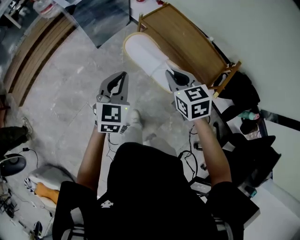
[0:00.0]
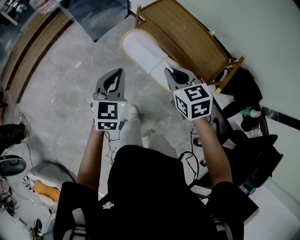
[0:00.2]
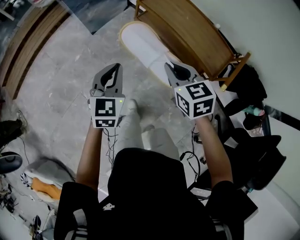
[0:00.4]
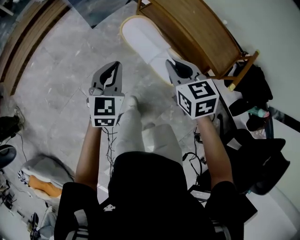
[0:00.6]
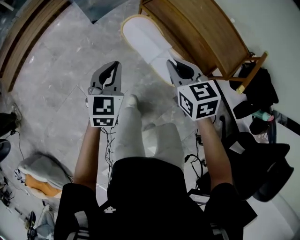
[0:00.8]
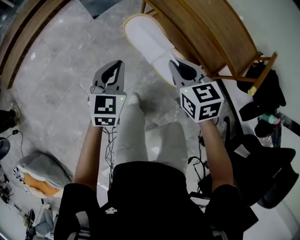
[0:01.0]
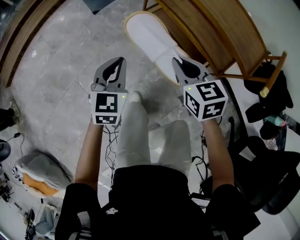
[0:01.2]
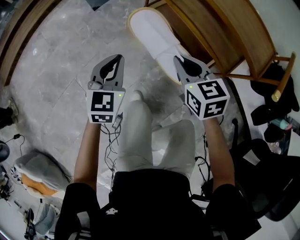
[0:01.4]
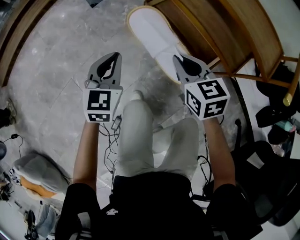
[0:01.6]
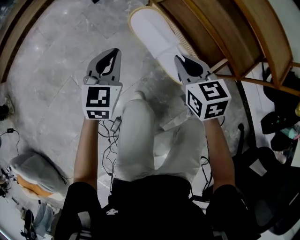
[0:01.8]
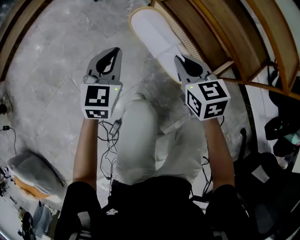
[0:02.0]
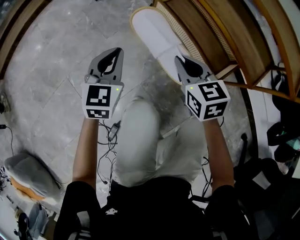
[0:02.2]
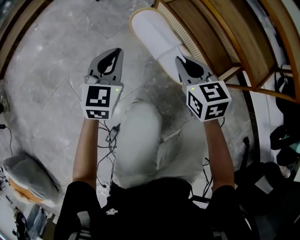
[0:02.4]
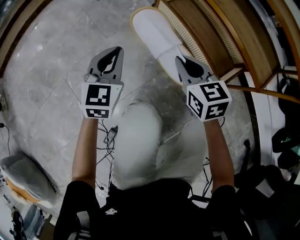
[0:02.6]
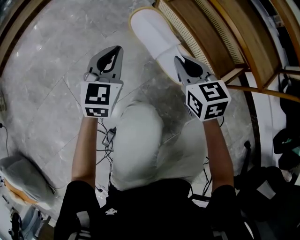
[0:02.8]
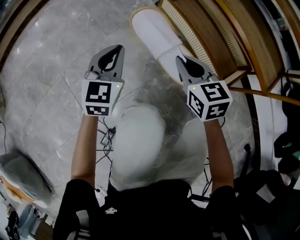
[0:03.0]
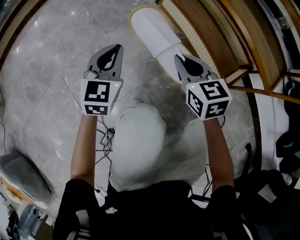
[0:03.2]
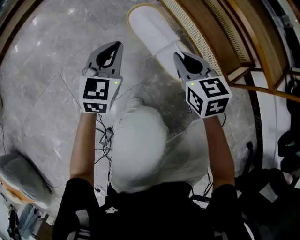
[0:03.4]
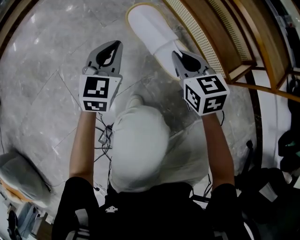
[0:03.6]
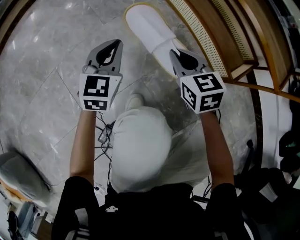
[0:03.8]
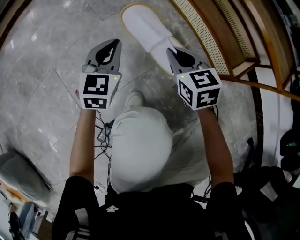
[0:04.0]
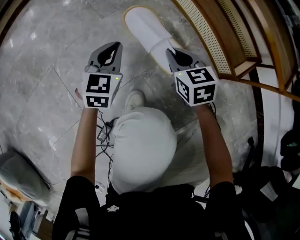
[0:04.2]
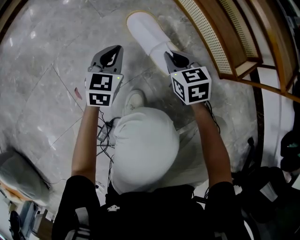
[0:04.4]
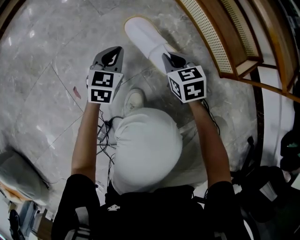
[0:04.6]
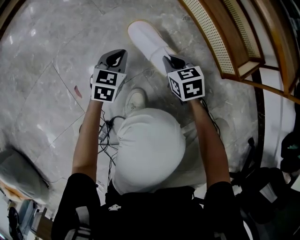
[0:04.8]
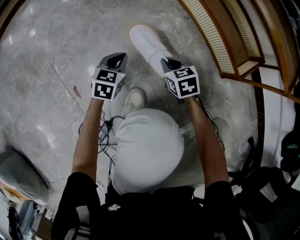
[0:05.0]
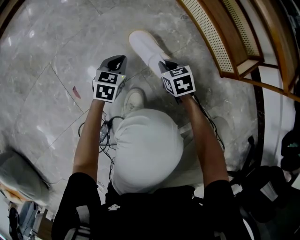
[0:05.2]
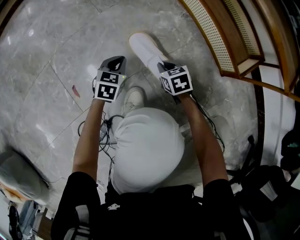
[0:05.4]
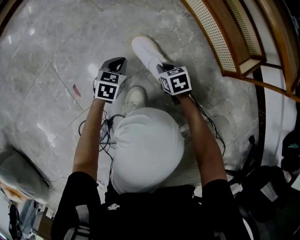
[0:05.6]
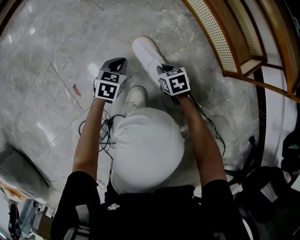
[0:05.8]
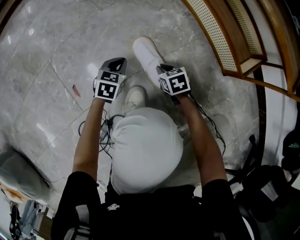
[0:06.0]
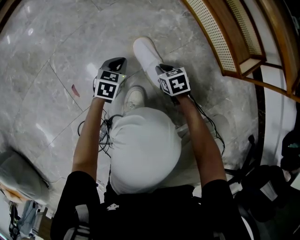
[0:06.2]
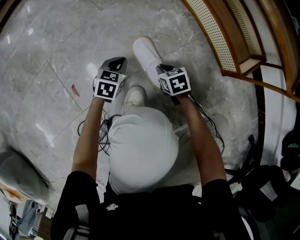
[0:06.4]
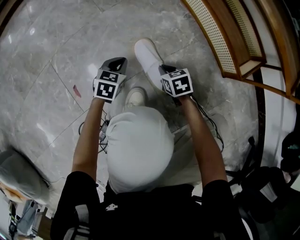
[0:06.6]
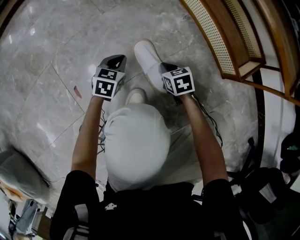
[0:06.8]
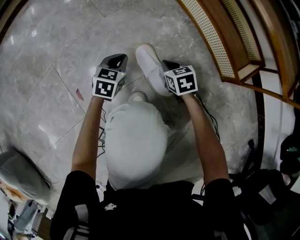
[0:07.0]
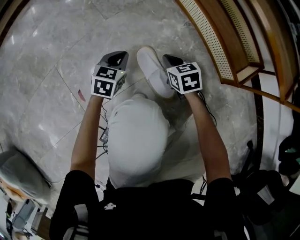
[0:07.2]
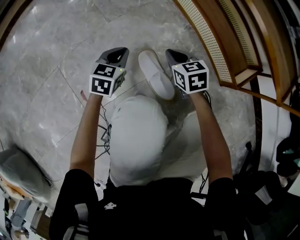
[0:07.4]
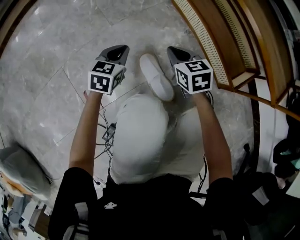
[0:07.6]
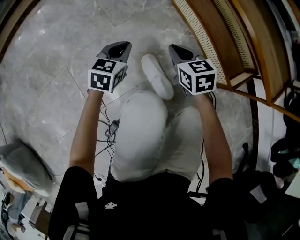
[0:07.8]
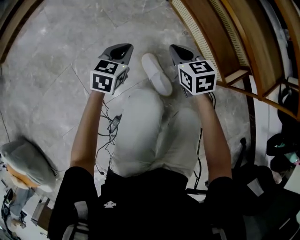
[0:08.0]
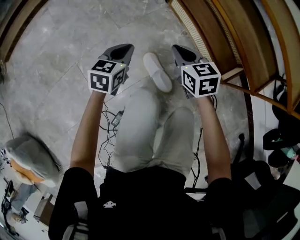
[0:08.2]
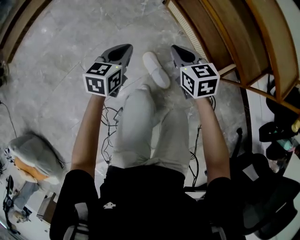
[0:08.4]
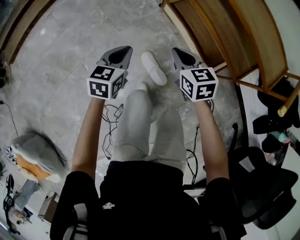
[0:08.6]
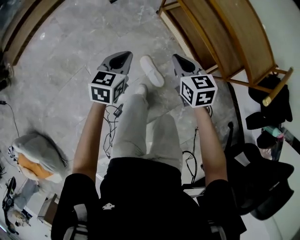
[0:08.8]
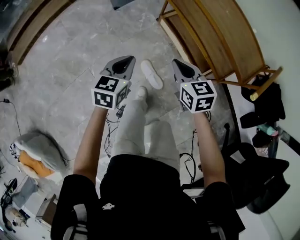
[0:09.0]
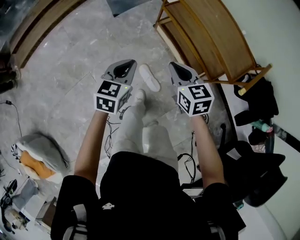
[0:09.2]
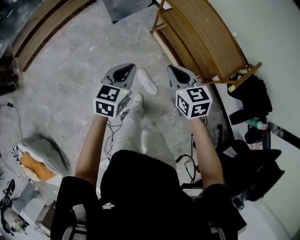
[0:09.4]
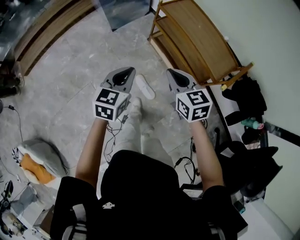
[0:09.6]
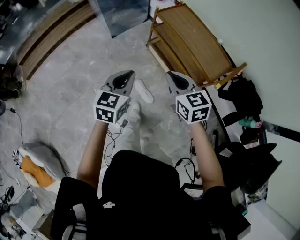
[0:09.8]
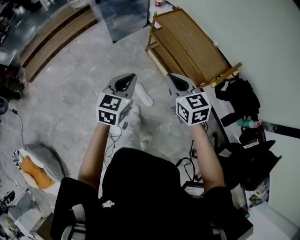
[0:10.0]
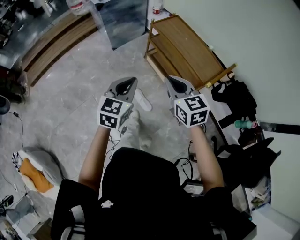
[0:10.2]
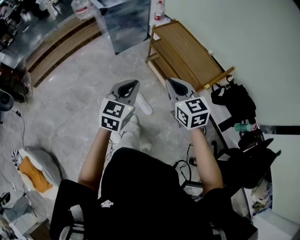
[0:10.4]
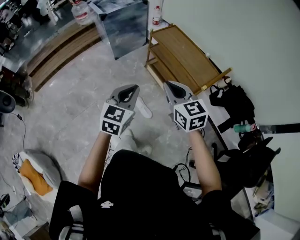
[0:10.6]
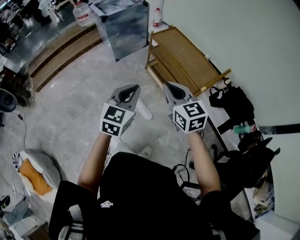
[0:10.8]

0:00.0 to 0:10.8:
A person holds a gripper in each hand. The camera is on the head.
0:00.0 to 0:01.6: Both grippers travel together downward, approximately 40 cm.
0:01.6 to 0:03.0: The grippers both shift downward by roughly 20 cm.
0:03.0 to 0:04.6: Both grippers travel together downward, approximately 20 cm.
0:04.6 to 0:06.2: Both grippers move downward, approximately 10 cm.
0:06.2 to 0:07.8: The two grippers go approximately 25 cm upward and forward. The right gripper rotates about 20 degrees.
0:07.8 to 0:09.2: The two grippers go about 50 cm upward.
0:09.2 to 0:10.8: Both grippers travel together upward and backward, approximately 35 cm.

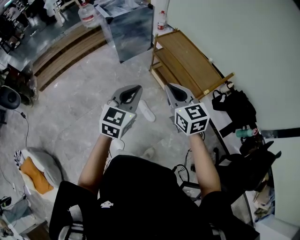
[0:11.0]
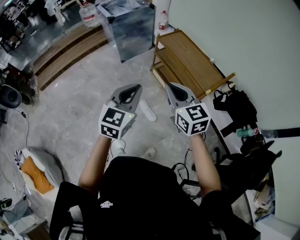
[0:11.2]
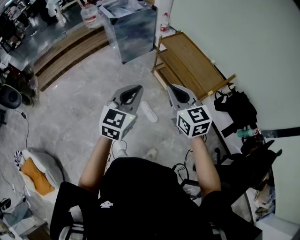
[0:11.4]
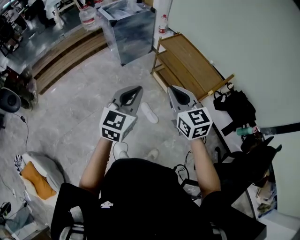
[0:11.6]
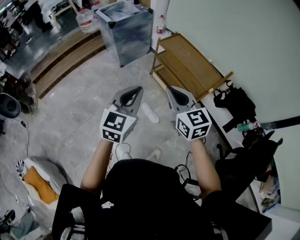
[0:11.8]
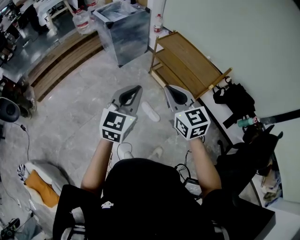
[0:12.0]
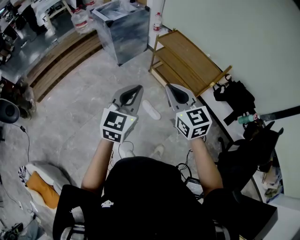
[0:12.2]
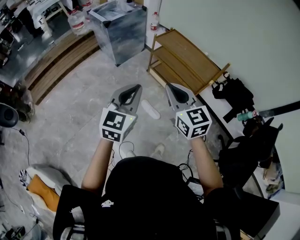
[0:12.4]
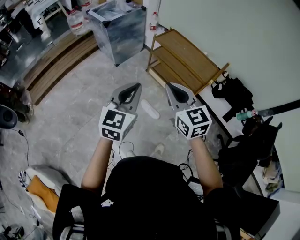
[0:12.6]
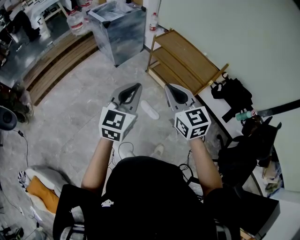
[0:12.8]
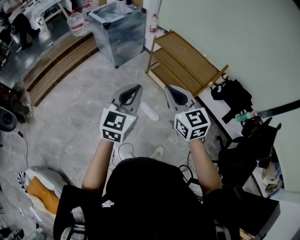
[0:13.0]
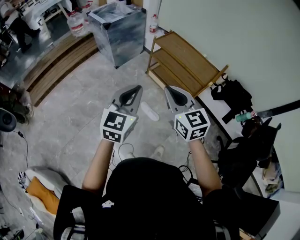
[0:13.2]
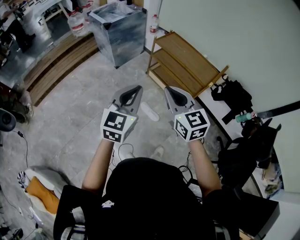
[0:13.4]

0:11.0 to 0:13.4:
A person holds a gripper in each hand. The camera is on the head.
0:11.0 to 0:12.2: The left gripper shifts some 15 cm to the left and upward. Meanwhile the right gripper travels to the left, backward and upward by approximately 15 cm.
0:12.2 to 0:13.4: The grippers stay close to where they were, moving slightly.

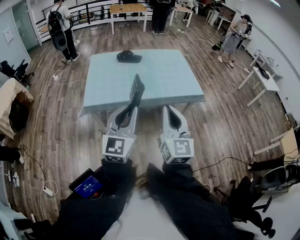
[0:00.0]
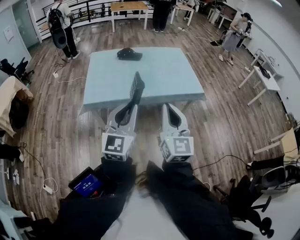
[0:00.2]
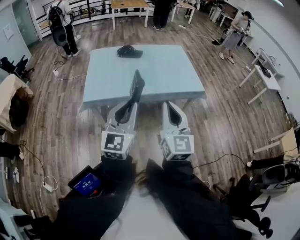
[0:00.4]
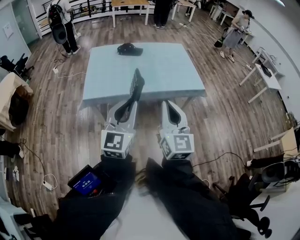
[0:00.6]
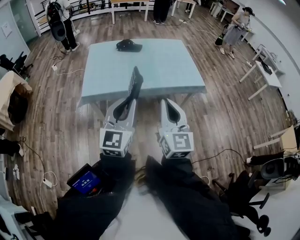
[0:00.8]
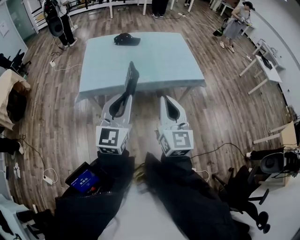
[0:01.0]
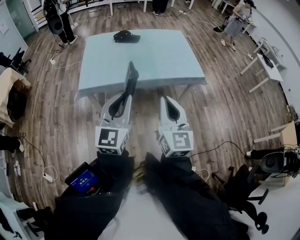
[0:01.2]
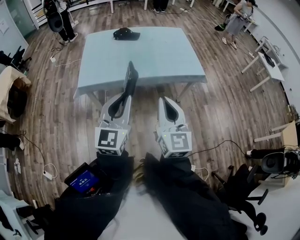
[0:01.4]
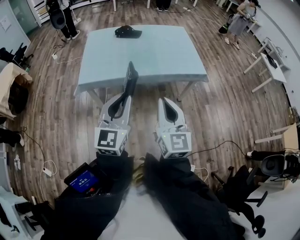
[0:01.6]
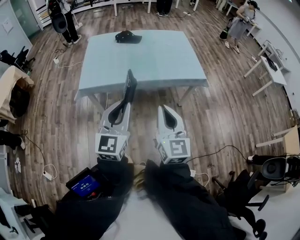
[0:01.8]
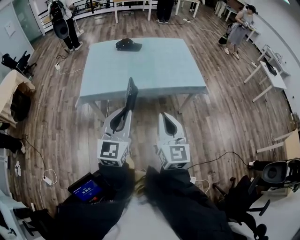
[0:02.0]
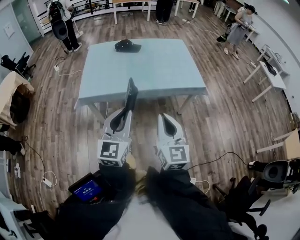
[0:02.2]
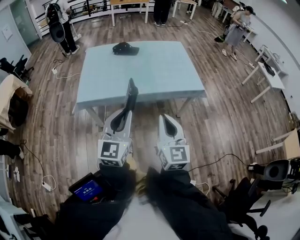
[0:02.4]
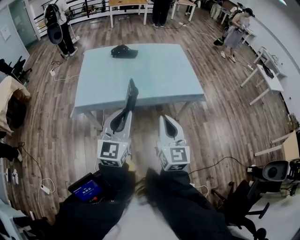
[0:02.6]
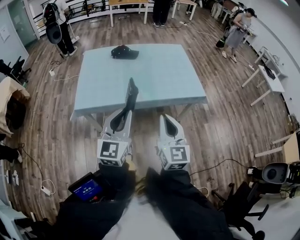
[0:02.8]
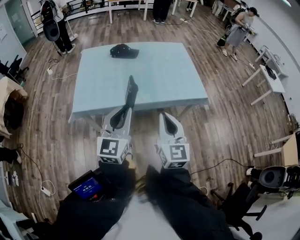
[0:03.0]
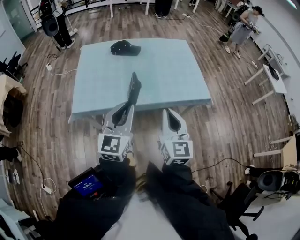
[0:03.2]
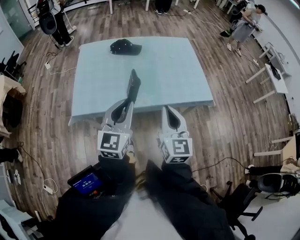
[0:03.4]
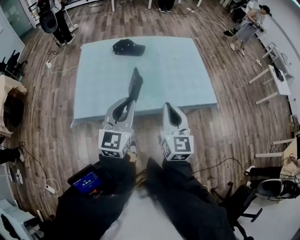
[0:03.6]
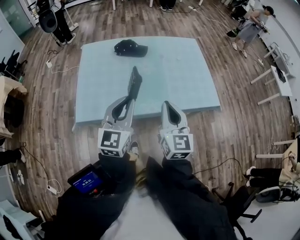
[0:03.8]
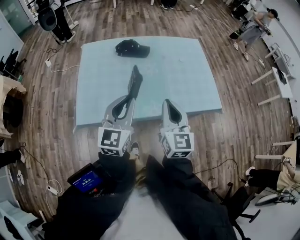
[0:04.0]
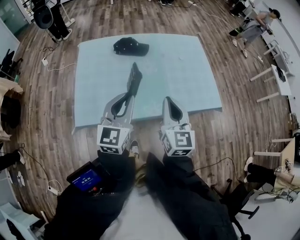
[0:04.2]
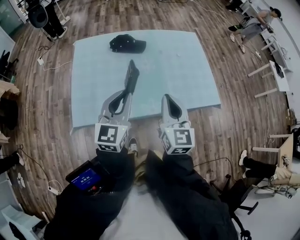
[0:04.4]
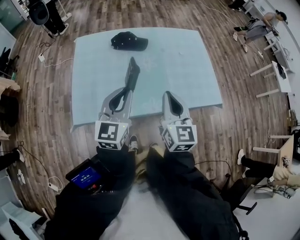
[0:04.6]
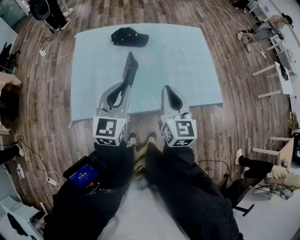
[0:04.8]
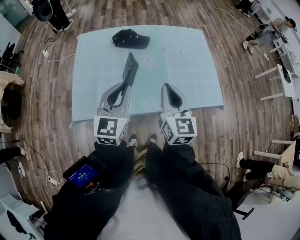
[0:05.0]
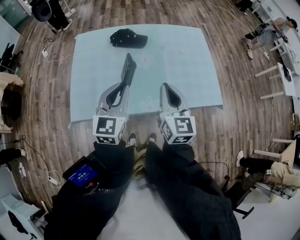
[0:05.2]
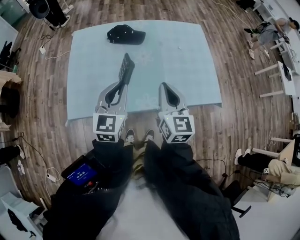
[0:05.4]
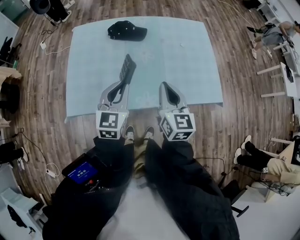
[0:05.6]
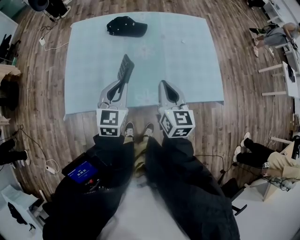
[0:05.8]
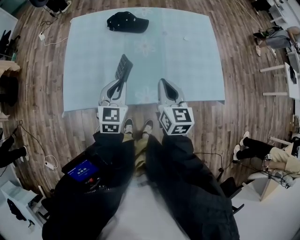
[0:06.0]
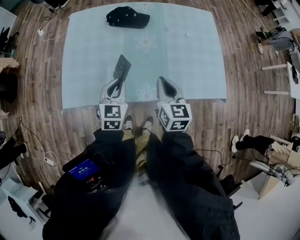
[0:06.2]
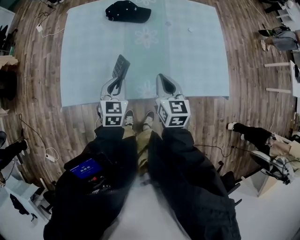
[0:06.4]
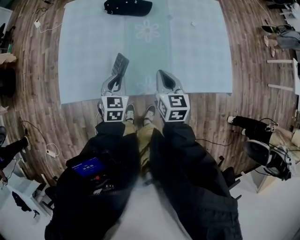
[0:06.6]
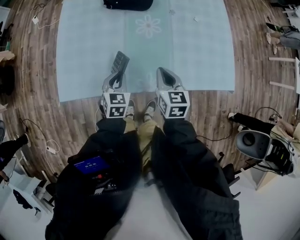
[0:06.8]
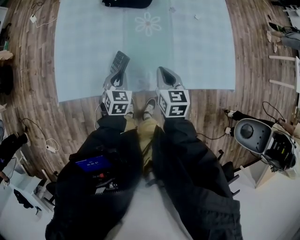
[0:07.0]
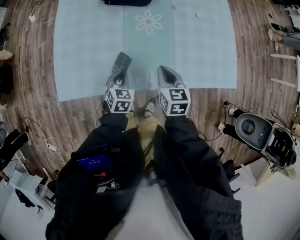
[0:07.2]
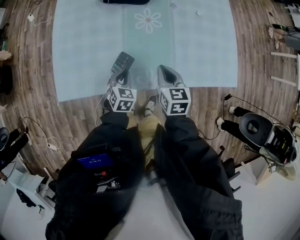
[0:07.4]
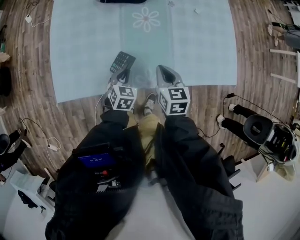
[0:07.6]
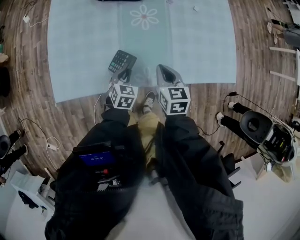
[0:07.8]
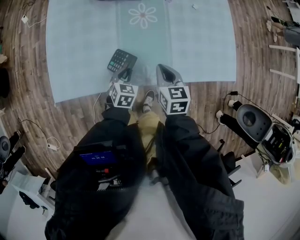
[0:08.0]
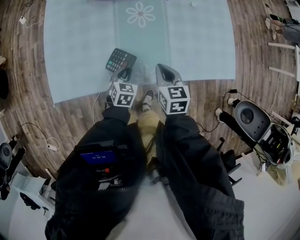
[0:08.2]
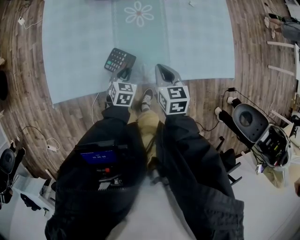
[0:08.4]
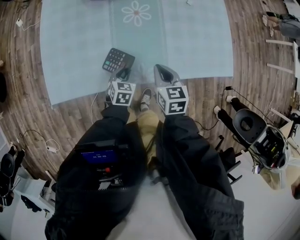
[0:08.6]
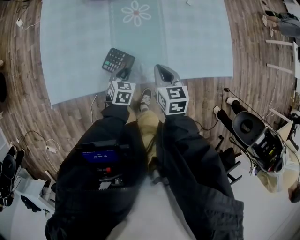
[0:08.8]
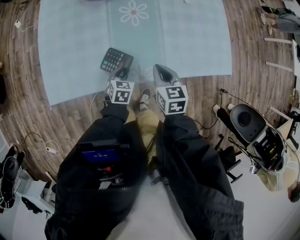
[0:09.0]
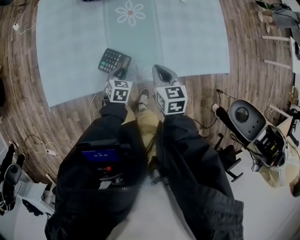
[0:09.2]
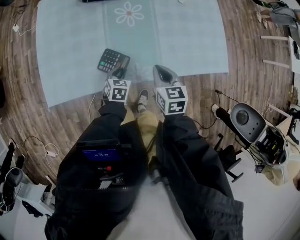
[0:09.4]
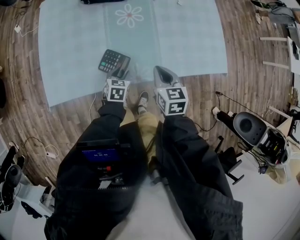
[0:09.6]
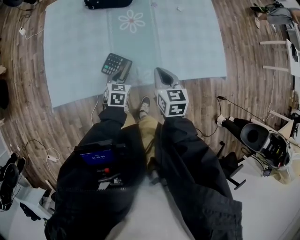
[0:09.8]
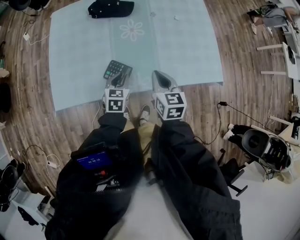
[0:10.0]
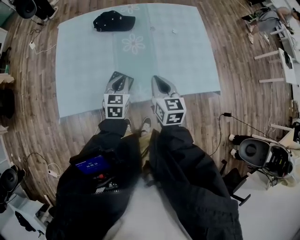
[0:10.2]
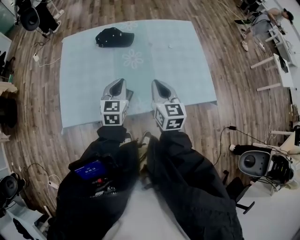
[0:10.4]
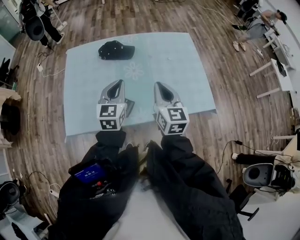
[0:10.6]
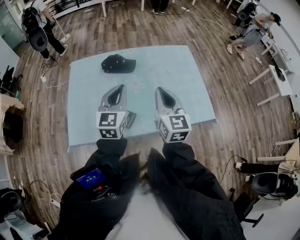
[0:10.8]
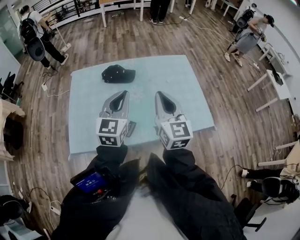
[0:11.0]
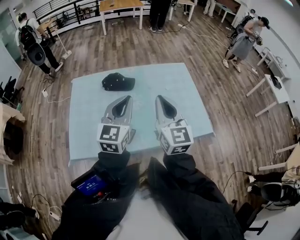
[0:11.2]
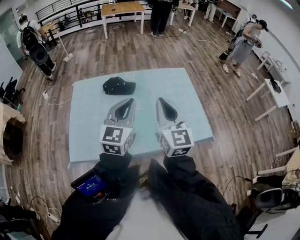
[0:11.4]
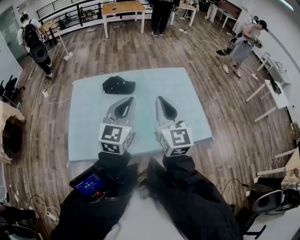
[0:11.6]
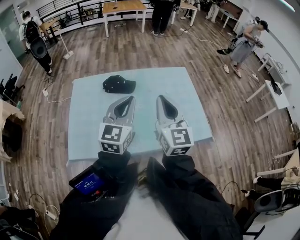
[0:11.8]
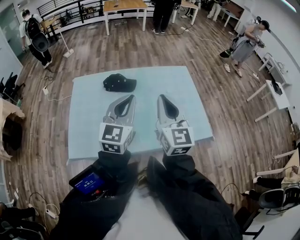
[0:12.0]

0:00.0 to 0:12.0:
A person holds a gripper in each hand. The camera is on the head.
0:00.0 to 0:01.6: The right gripper shifts roughly 5 cm downward.
0:01.6 to 0:03.0: The grippers both shift forward by approximately 15 cm.
0:03.0 to 0:04.4: The grippers both shift forward by roughly 25 cm.
0:04.4 to 0:06.0: The grippers both shift downward and forward by roughly 15 cm. The left gripper swivels approximately 20 degrees.
0:06.0 to 0:07.6: The grippers both shift downward by about 20 cm. The left gripper turns by roughly 30 degrees.
0:07.6 to 0:09.0: The left gripper changes place by about 5 cm.
0:09.0 to 0:10.4: The right gripper moves upward, some 15 cm, and turns by some 20 degrees, while the left gripper travels upward by some 25 cm, points its fingers some 30 degrees further upward, and closes its fingers.
0:10.4 to 0:12.0: Both grippers travel together upward, roughly 20 cm. The left gripper swivels some 20 degrees. The right gripper turns by about 30 degrees.
